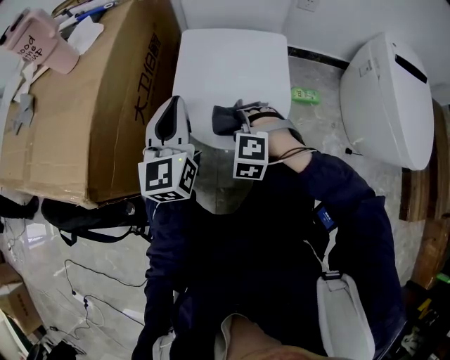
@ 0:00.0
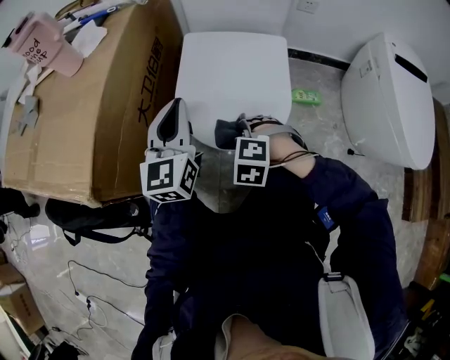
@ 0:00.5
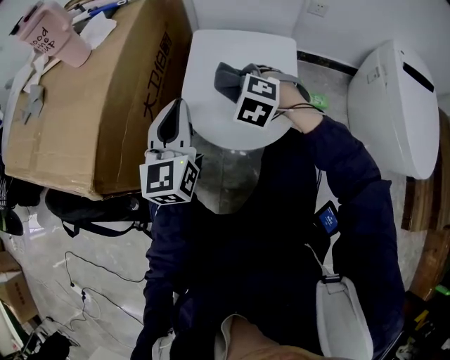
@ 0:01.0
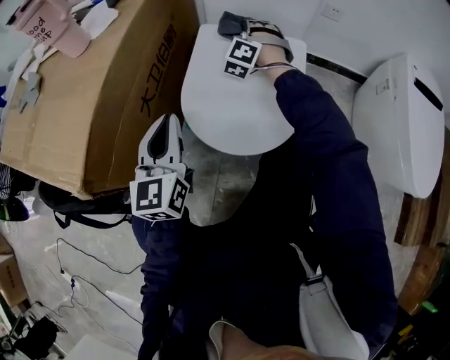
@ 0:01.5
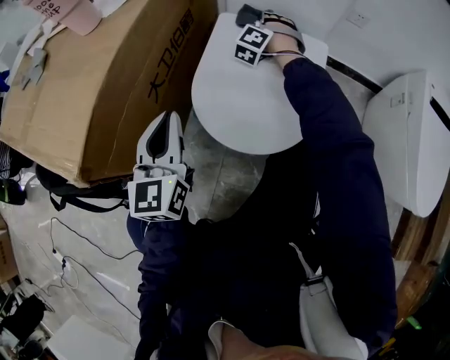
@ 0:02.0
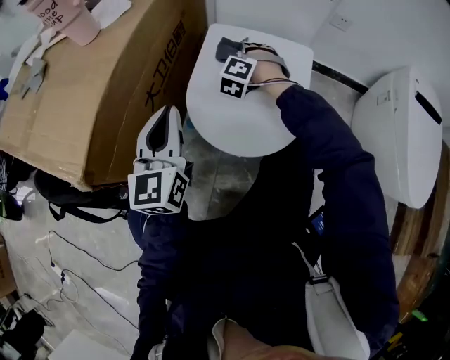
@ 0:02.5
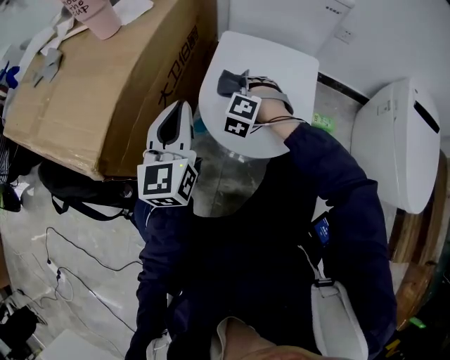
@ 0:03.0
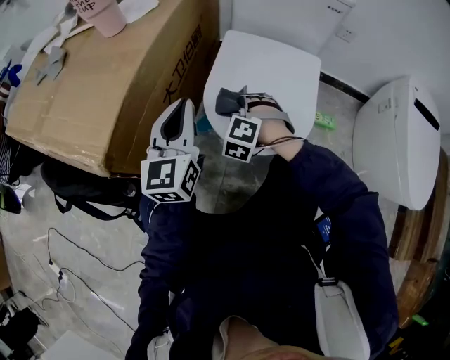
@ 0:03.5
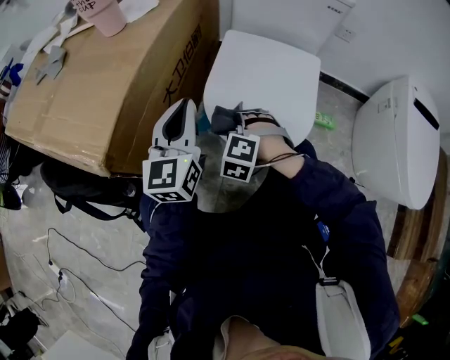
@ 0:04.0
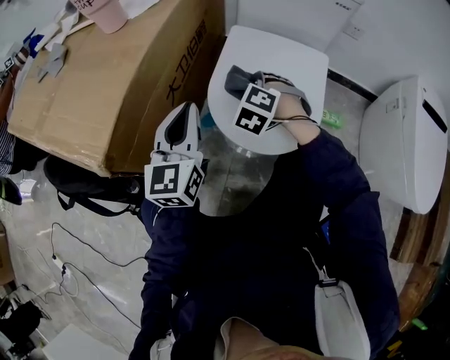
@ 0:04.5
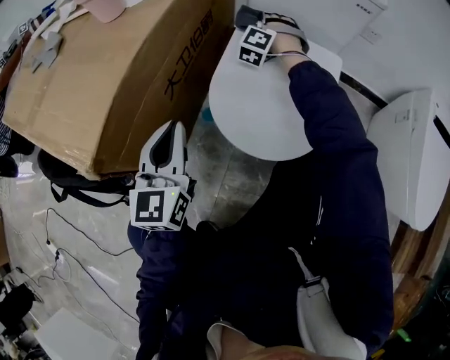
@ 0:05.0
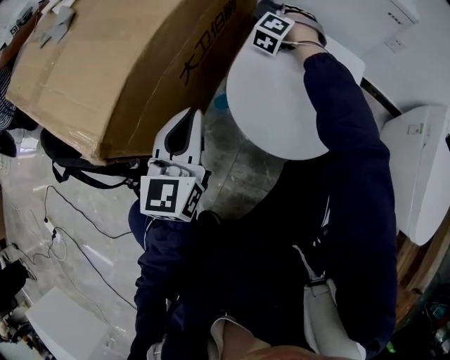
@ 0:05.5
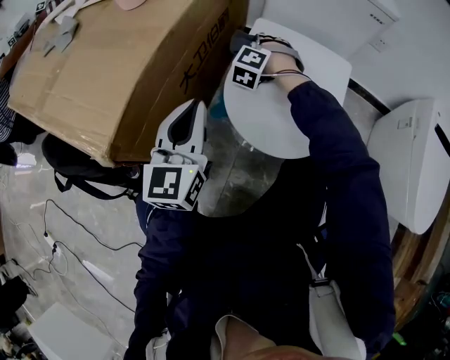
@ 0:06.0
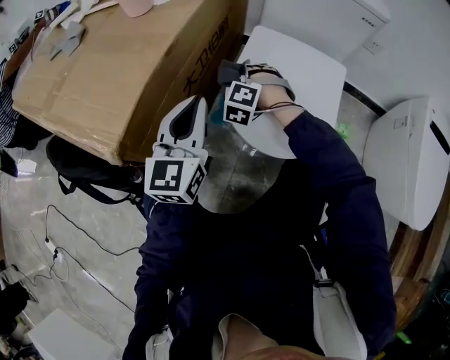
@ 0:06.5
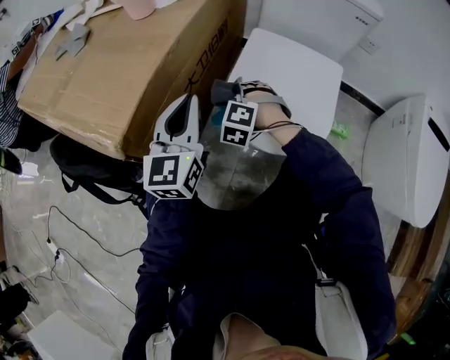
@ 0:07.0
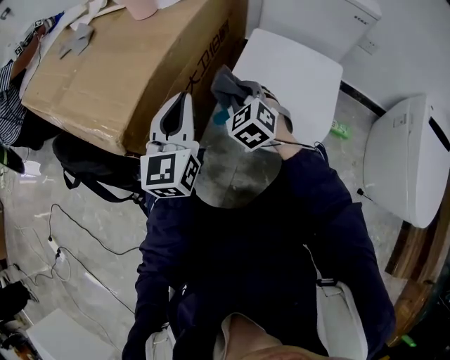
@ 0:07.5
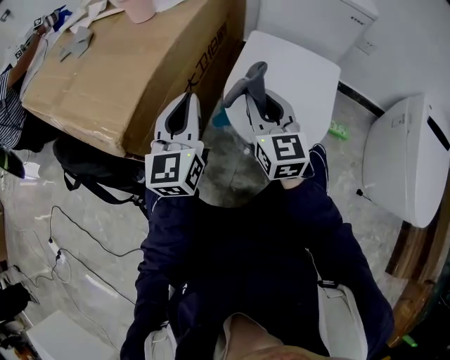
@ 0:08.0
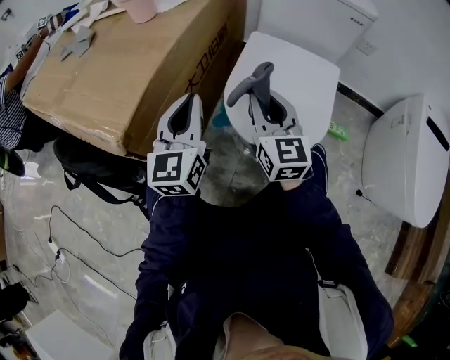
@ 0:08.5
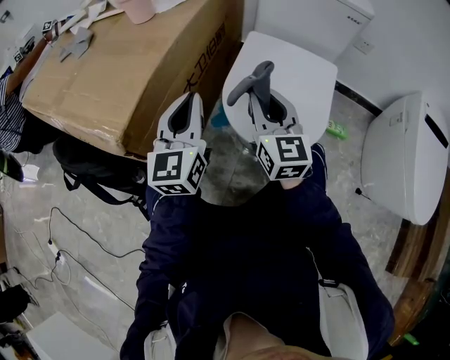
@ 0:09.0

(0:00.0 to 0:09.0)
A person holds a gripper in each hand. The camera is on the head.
0:00.0 - 0:02.0: The left gripper shifts by roughly 5 cm.

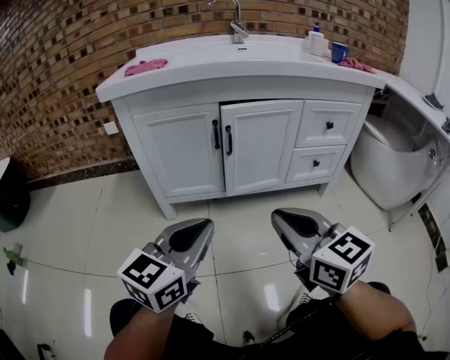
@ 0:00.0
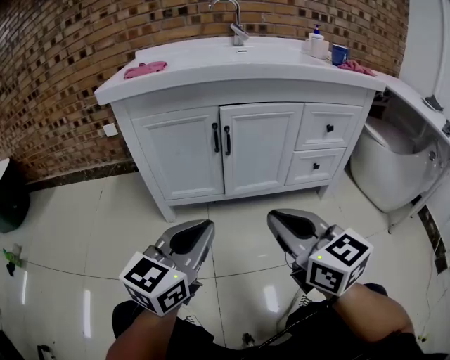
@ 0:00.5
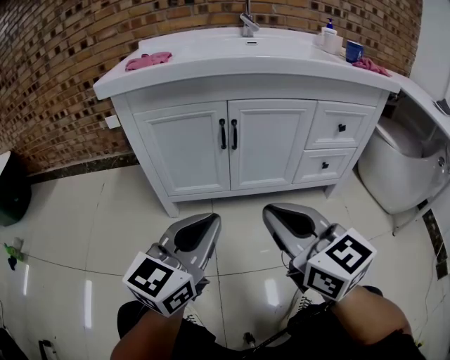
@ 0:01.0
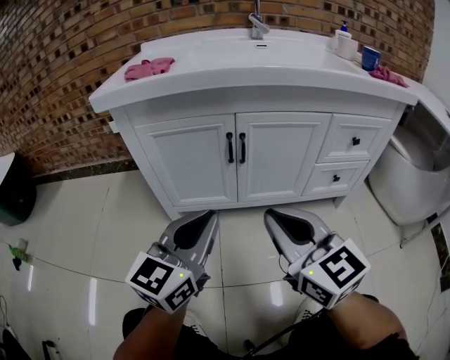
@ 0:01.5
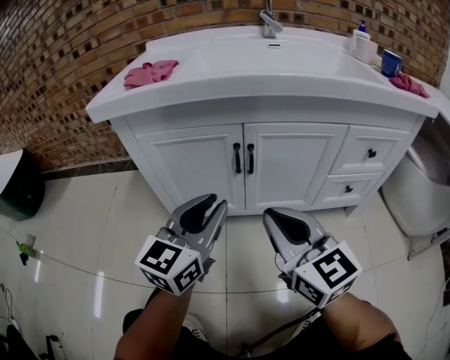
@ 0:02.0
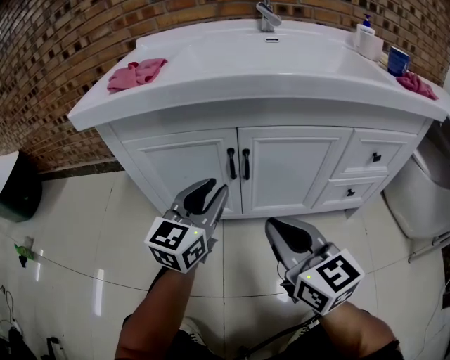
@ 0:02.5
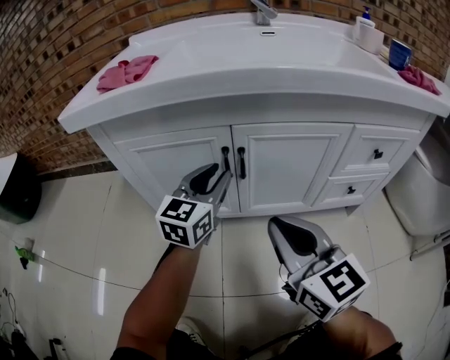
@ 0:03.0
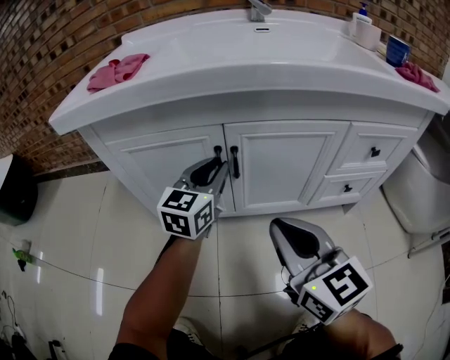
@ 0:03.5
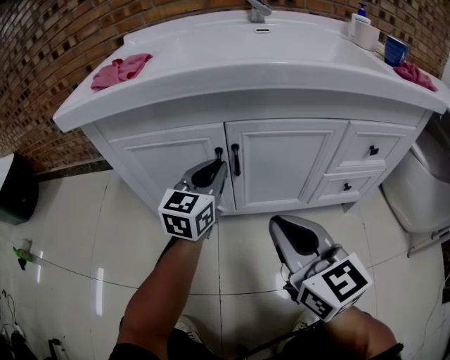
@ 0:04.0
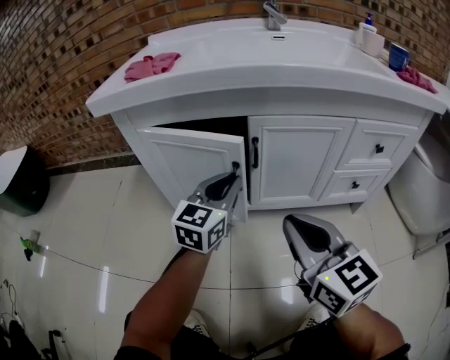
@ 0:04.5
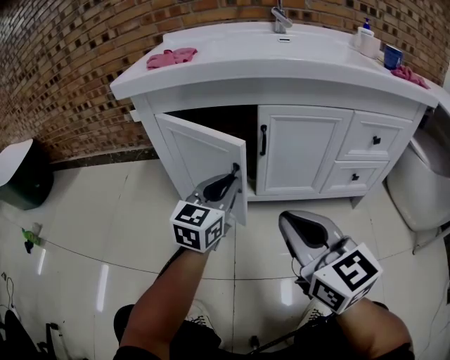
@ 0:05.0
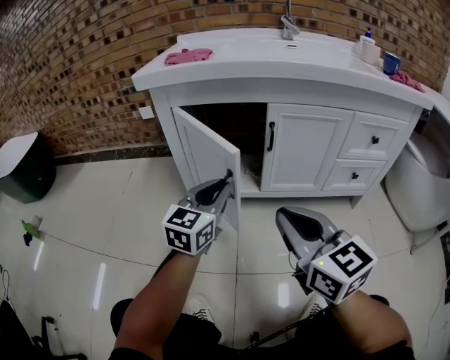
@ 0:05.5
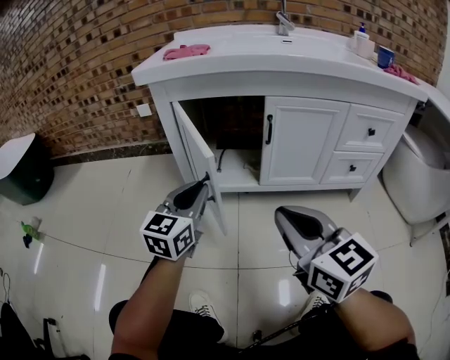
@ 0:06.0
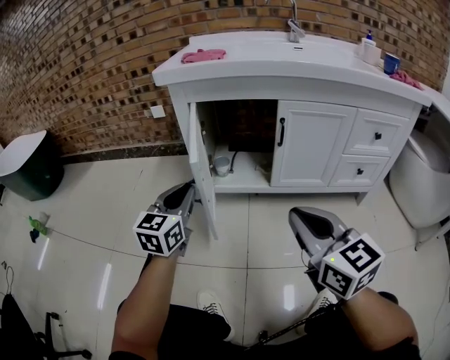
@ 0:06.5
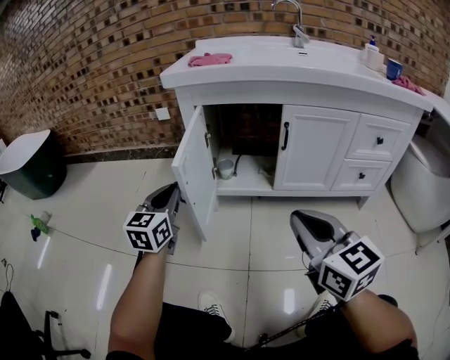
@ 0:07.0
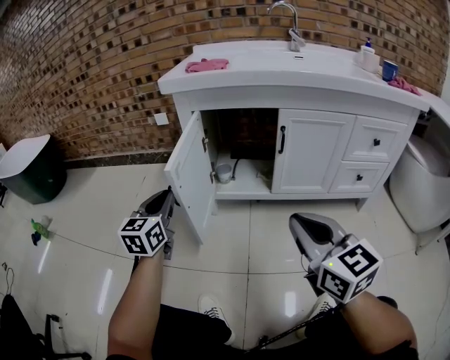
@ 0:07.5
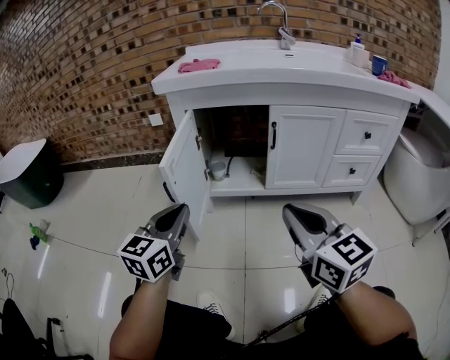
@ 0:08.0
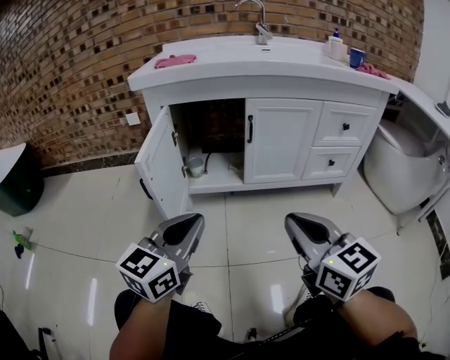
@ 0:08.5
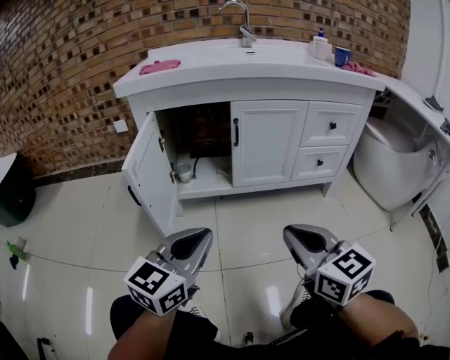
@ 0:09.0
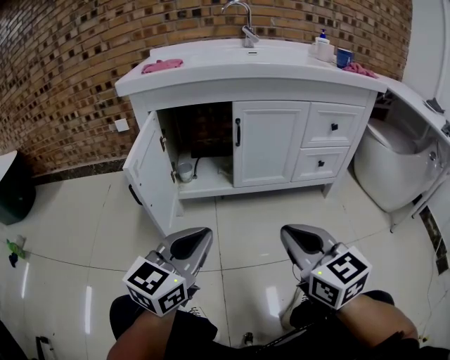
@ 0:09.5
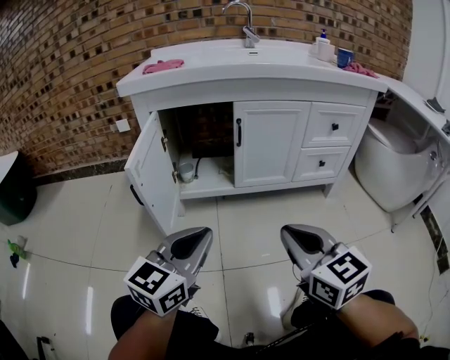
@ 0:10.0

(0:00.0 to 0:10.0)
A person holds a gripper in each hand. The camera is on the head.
0:00.0 - 0:02.0: Both grippers travel together forward, approximately 15 cm. The left gripper opens up.
0:02.0 - 0:04.0: The right gripper shifts by approximately 5 cm. The left gripper moves forward, roughly 15 cm.
0:04.0 - 0:06.0: The right gripper heads backward and to the left, covering roughly 15 cm, while the left gripper shifts roughly 25 cm backward and to the left.
0:06.0 - 0:08.0: The left gripper heads backward and to the left, covering some 10 cm.
0:08.0 - 0:10.0: The right gripper is displaced to the right by approximately 5 cm. The left gripper goes roughly 15 cm to the right and backward.

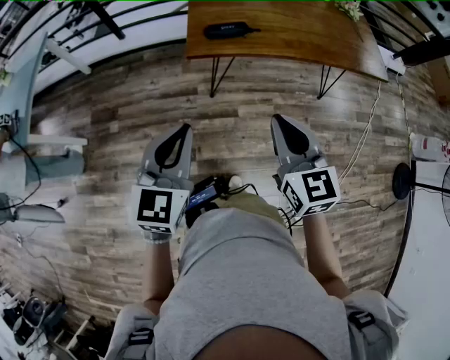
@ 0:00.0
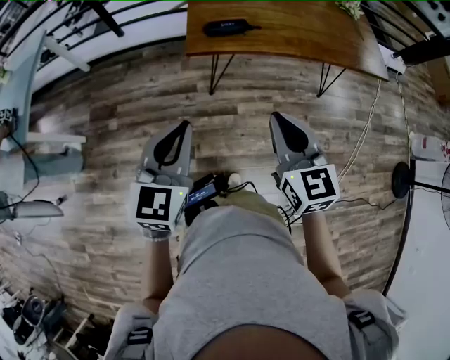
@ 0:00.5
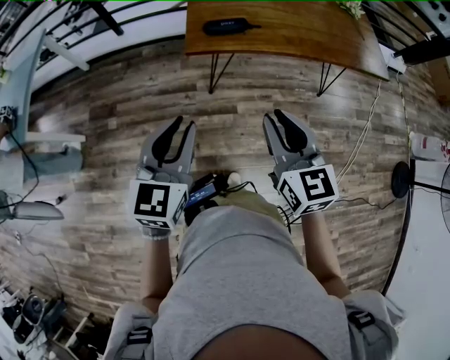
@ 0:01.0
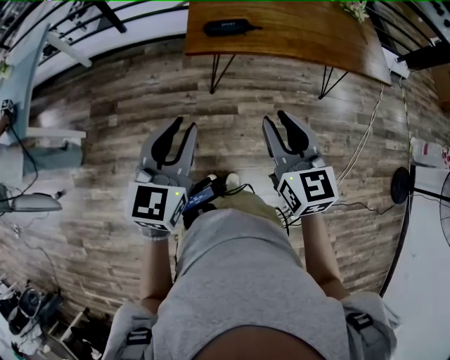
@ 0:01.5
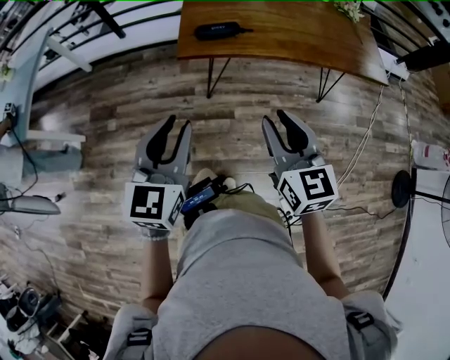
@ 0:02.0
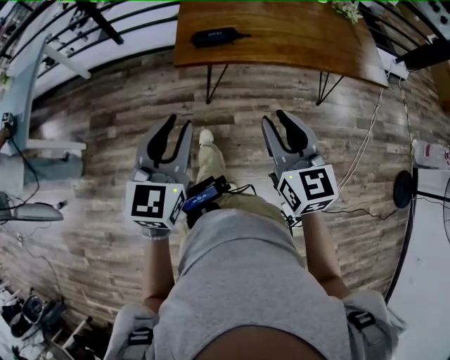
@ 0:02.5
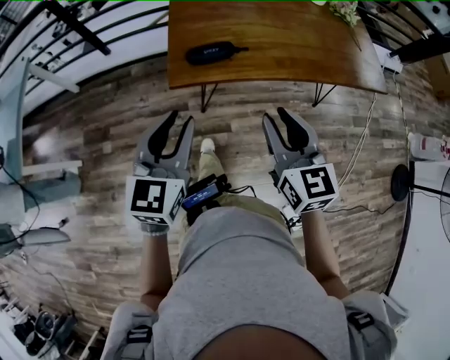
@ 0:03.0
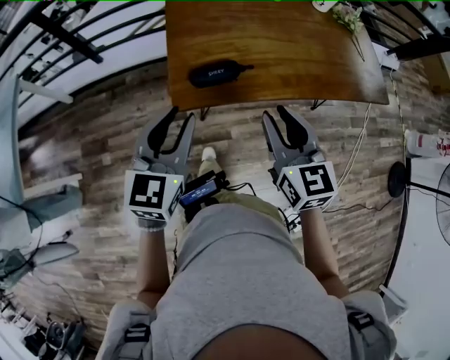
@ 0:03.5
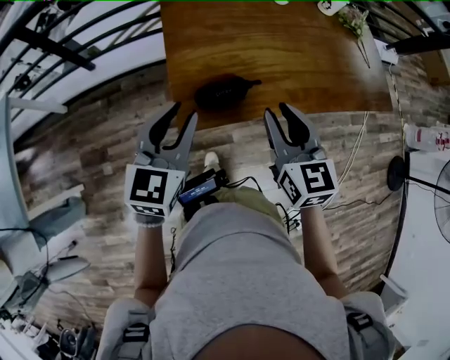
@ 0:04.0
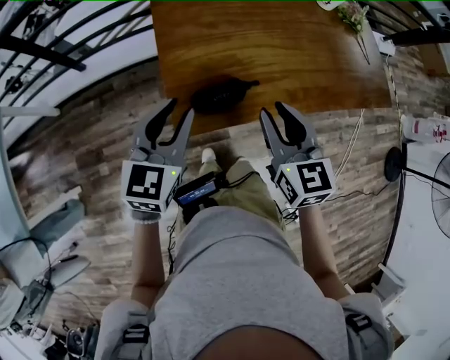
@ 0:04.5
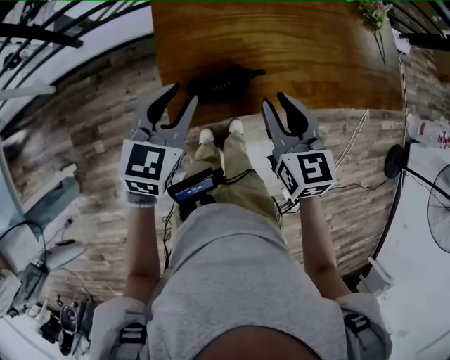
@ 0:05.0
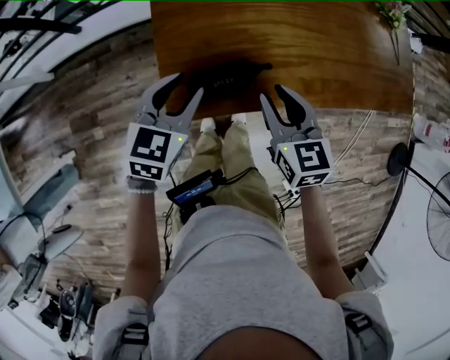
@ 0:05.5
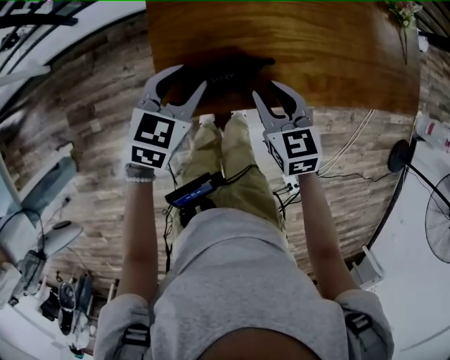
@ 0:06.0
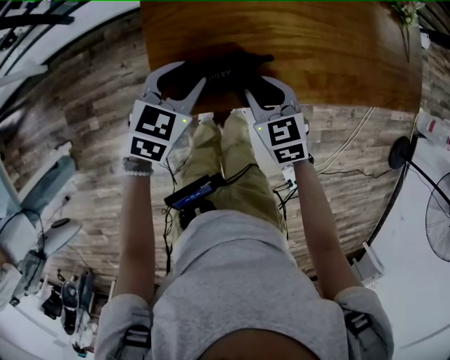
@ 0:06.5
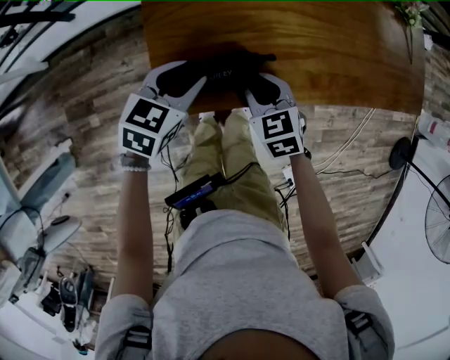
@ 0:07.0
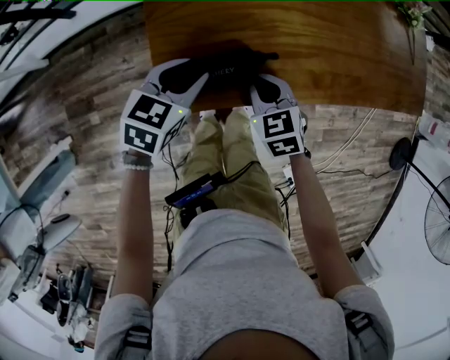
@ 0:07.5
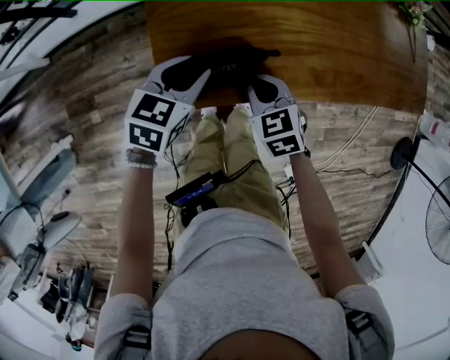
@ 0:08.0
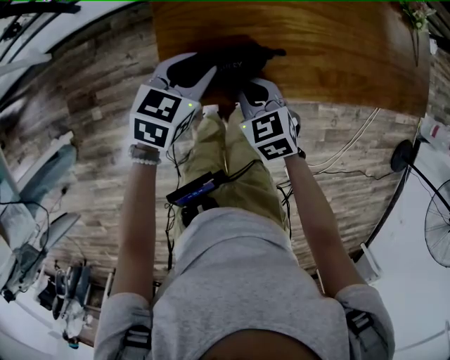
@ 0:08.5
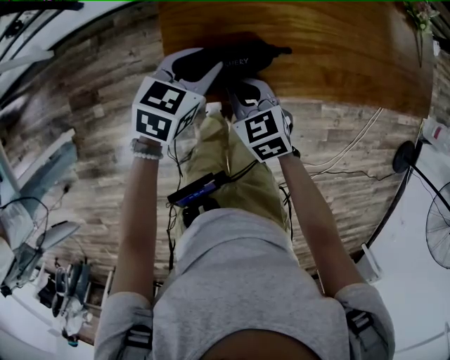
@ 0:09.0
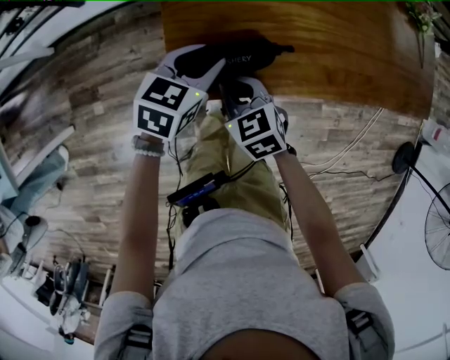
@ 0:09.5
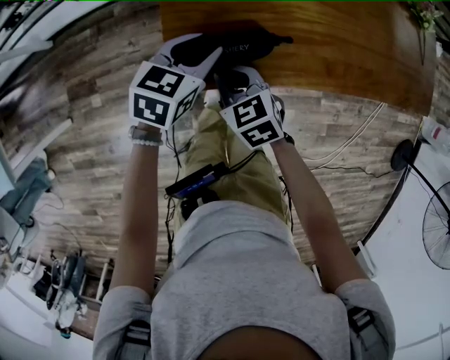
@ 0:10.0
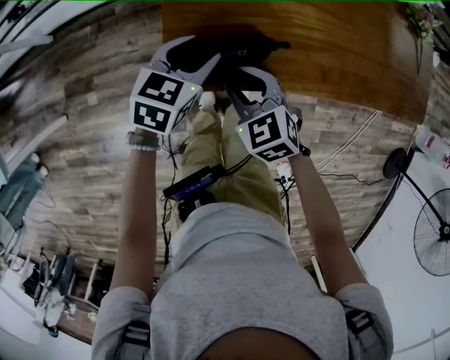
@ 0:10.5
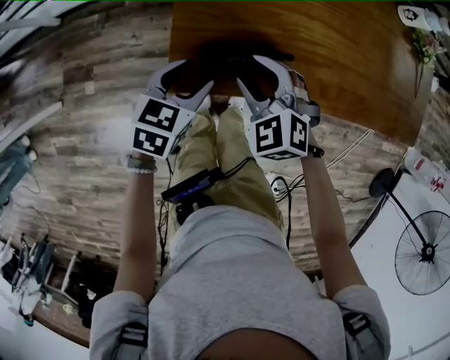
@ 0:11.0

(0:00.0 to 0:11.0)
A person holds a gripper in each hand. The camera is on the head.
0:00.0 - 0:02.0: The right gripper opens, while the left gripper opens up.
0:02.0 - 0:03.5: The two grippers go some 25 cm forward.
0:03.5 - 0:05.5: The grippers both shift forward and downward by some 20 cm. The left gripper swivels some 20 degrees.
0:05.5 - 0:07.5: The right gripper is displaced downward by roughly 10 cm, rotates some 20 degrees, and closes up; the left gripper goes approximately 5 cm downward.
0:07.5 - 0:09.0: The right gripper shifts about 5 cm to the left.
0:09.0 - 0:11.0: The left gripper goes some 5 cm to the left, and opens; the right gripper rotates about 40 degrees, and opens up.
